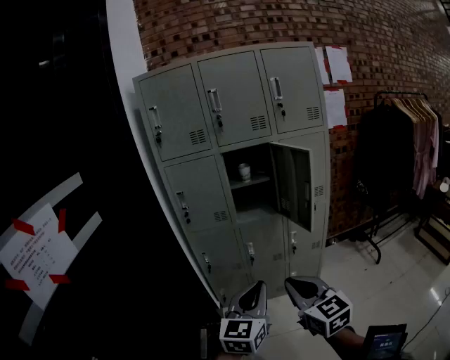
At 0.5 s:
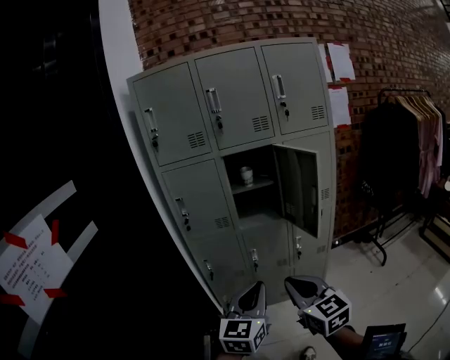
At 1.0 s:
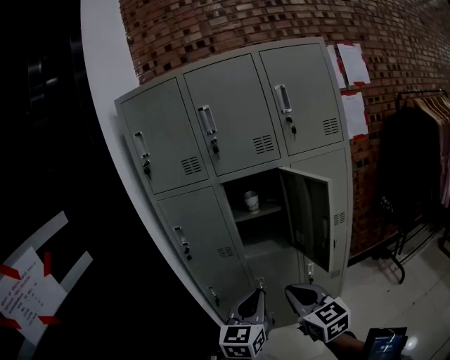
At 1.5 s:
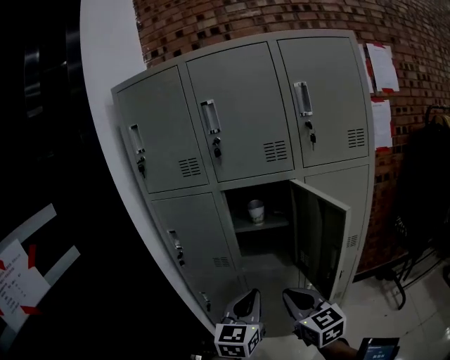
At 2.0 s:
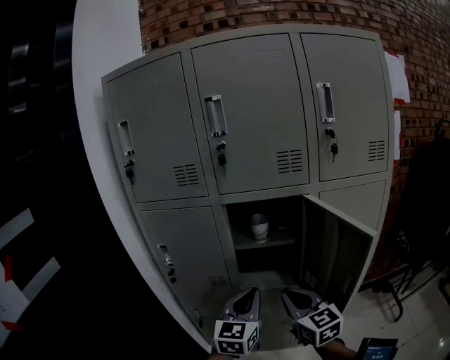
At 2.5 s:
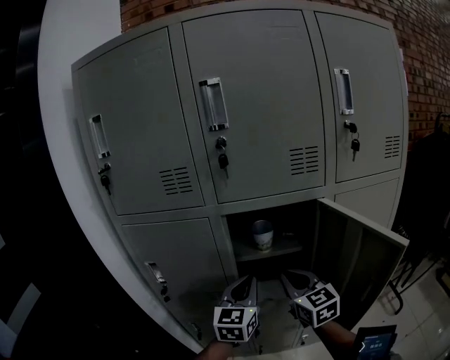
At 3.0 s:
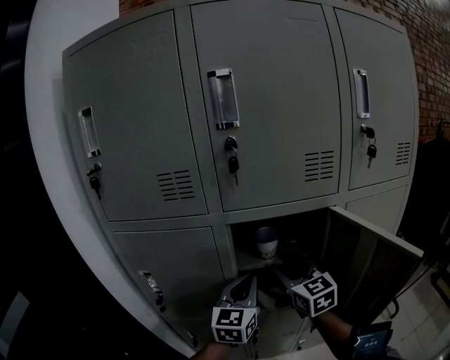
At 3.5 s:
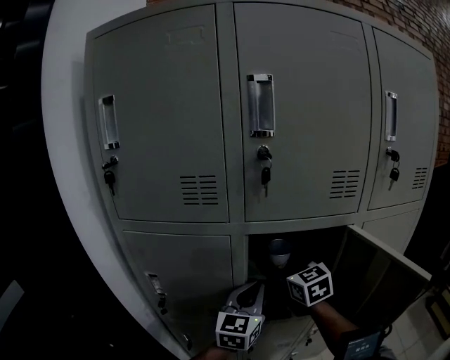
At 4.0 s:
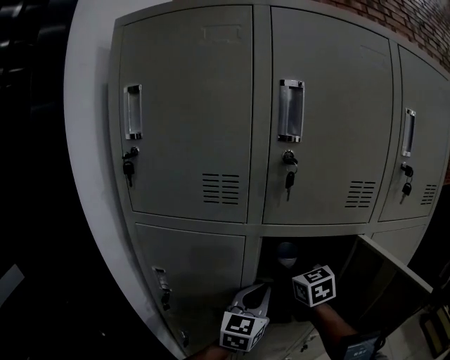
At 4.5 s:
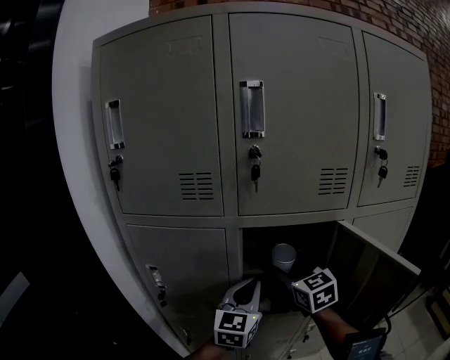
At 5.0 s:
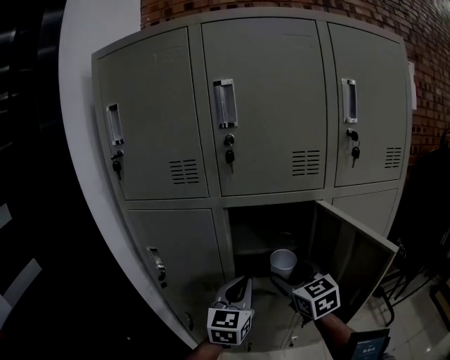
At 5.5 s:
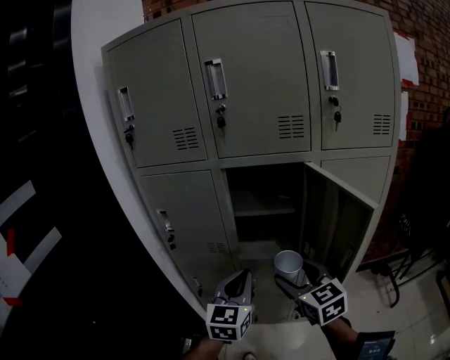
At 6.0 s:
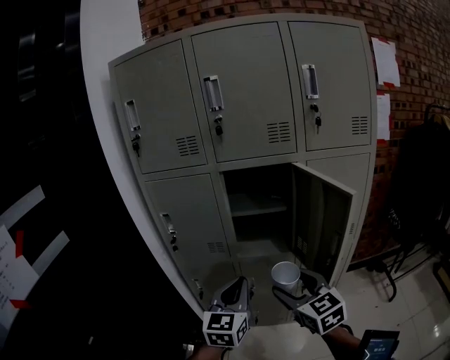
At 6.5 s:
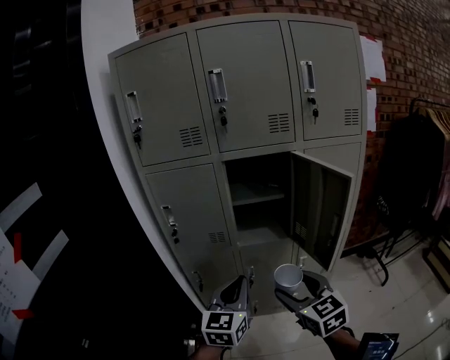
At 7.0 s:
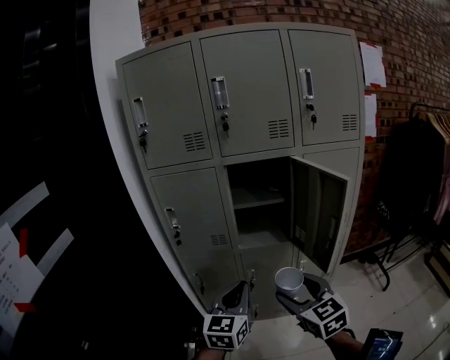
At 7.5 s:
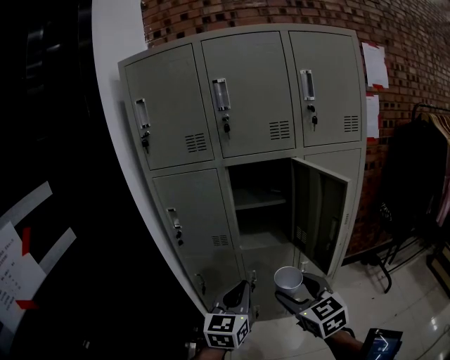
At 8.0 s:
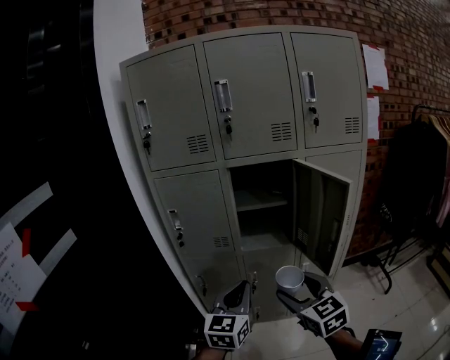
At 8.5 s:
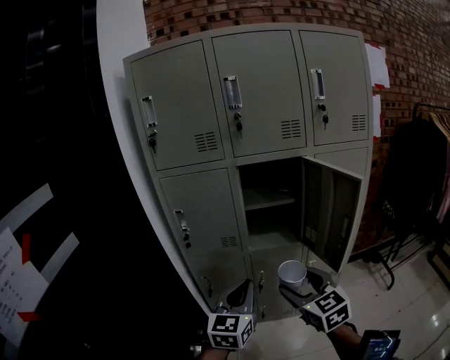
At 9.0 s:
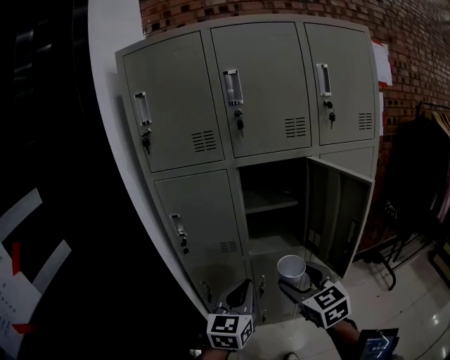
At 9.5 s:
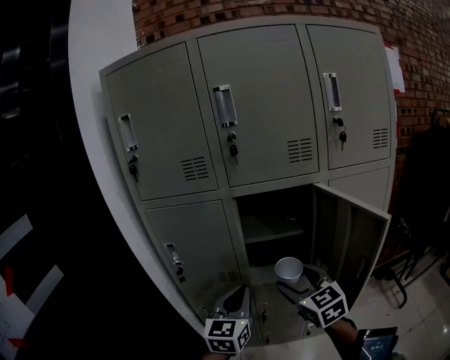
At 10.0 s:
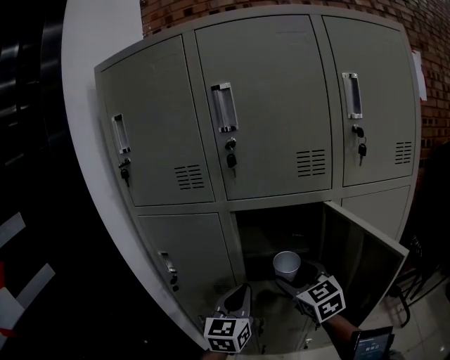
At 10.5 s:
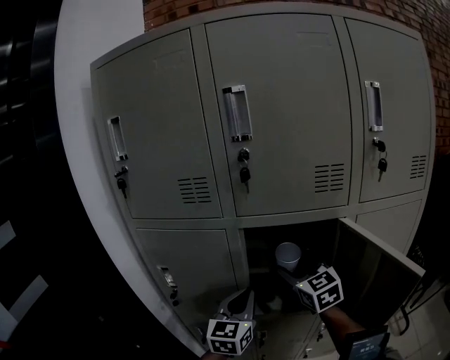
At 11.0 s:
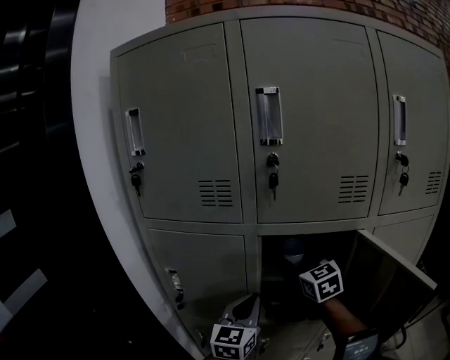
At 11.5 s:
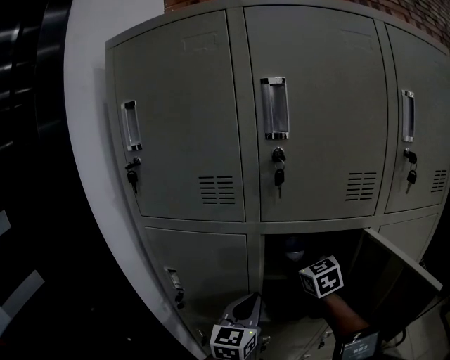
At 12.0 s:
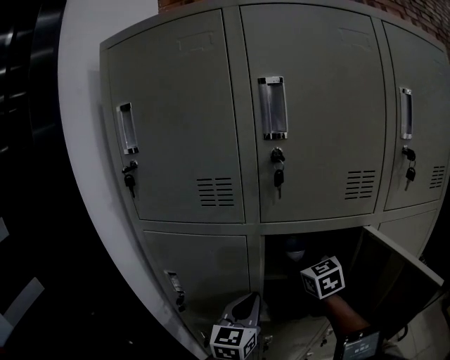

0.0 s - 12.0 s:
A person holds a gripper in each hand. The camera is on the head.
0.0 s - 2.0 s: Both grippers are carried forward, some 40 cm.
2.0 s - 4.0 s: The right gripper travels forward by approximately 30 cm, and opens. Meanwhile the left gripper shifts some 20 cm forward.
4.0 s - 6.0 s: Both grippers travel together backward, some 35 cm.
6.0 s - 8.0 s: The two grippers go approximately 5 cm backward.
8.0 s - 10.0 s: Both grippers move forward, some 25 cm.
10.0 s - 12.0 s: The left gripper travels forward by some 10 cm. Meanwhile the right gripper goes some 15 cm forward.

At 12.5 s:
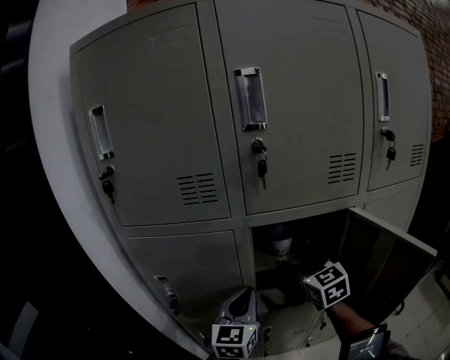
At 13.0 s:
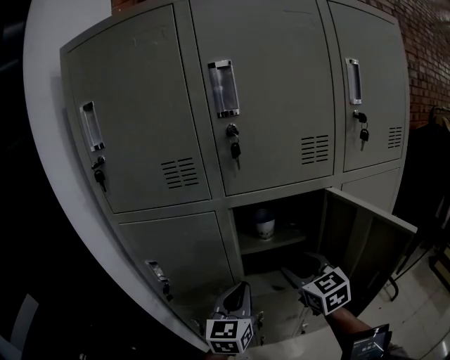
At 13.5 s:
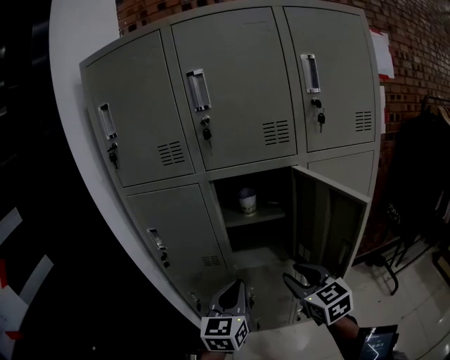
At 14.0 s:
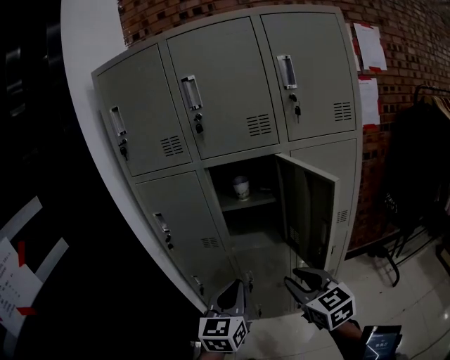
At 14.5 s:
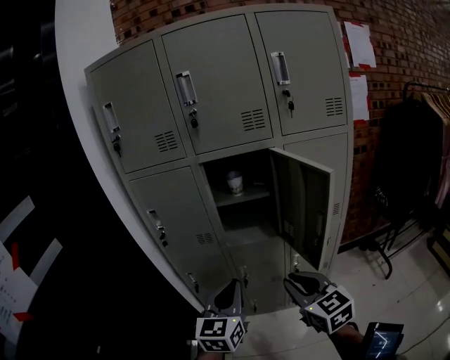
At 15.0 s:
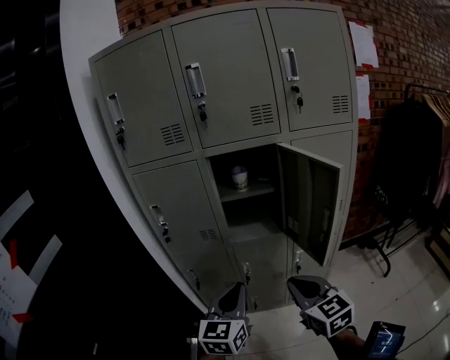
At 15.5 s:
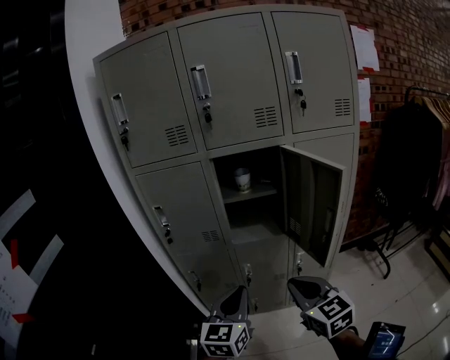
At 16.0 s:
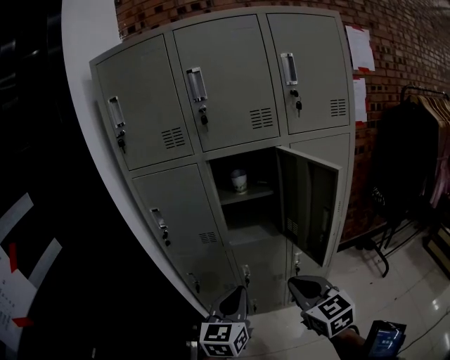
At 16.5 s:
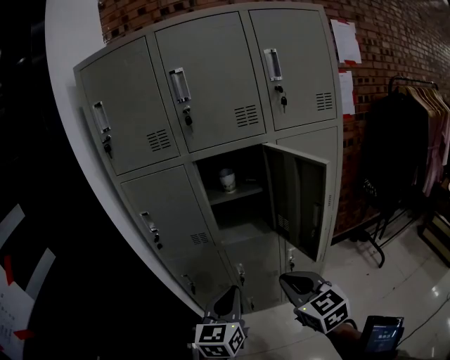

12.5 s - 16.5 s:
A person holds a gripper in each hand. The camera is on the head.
12.5 s - 14.5 s: Both grippers travel together backward, about 35 cm. The right gripper closes its fingers.
14.5 s - 16.5 s: The grippers make only small movements.

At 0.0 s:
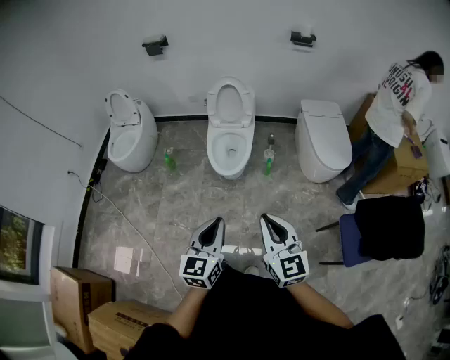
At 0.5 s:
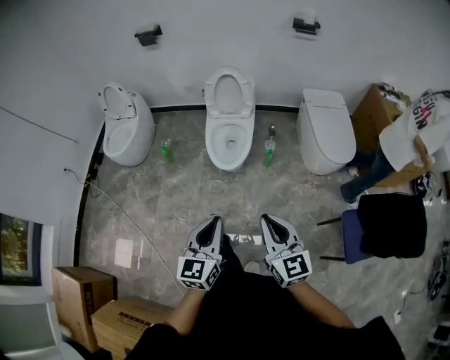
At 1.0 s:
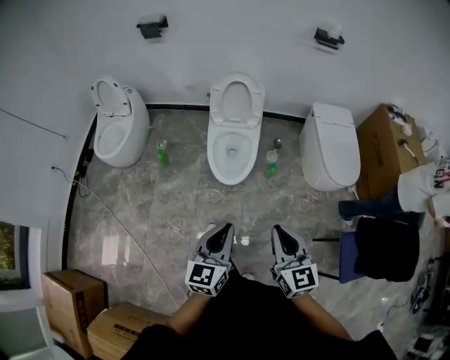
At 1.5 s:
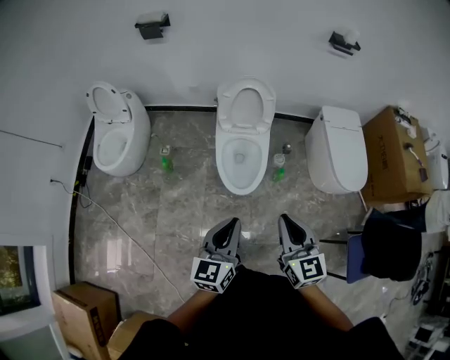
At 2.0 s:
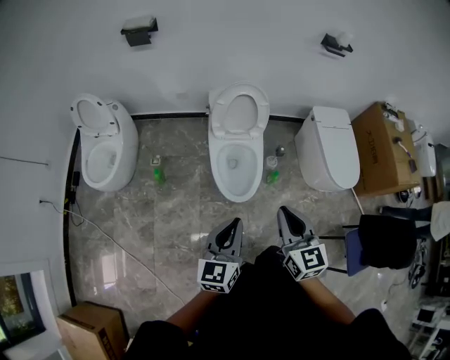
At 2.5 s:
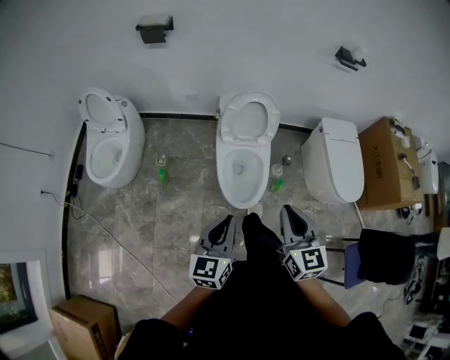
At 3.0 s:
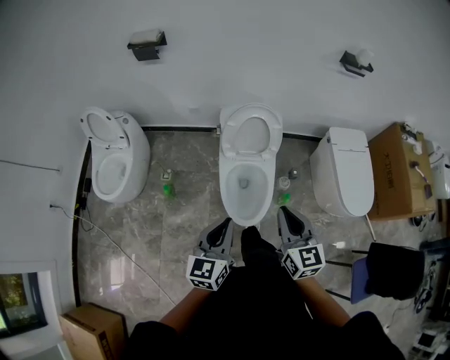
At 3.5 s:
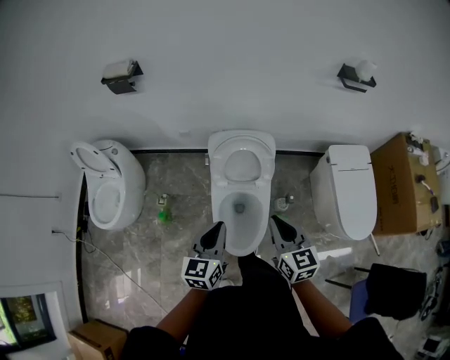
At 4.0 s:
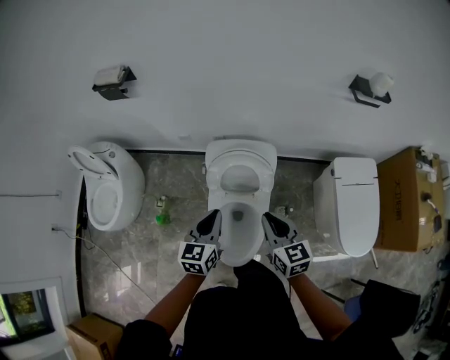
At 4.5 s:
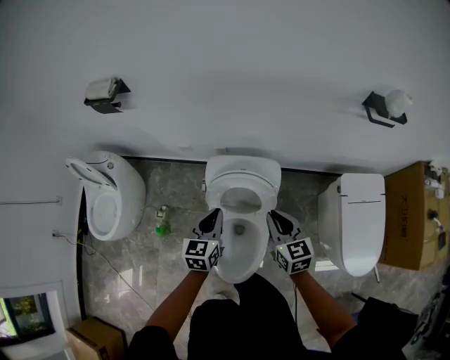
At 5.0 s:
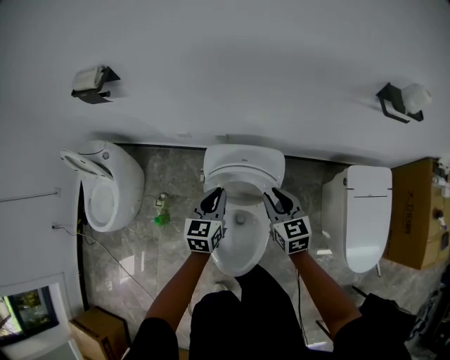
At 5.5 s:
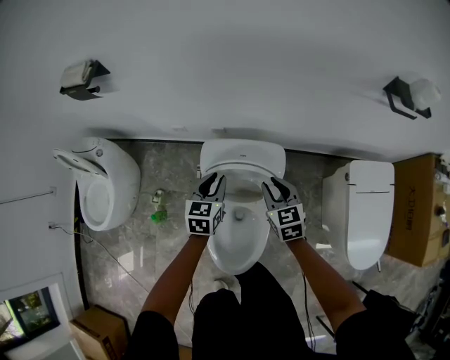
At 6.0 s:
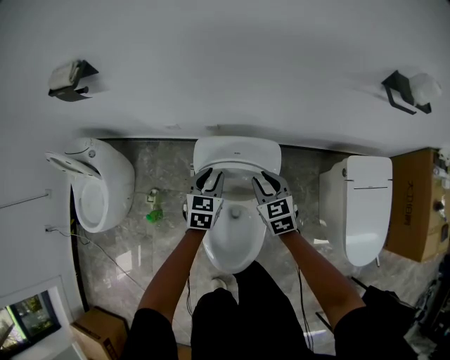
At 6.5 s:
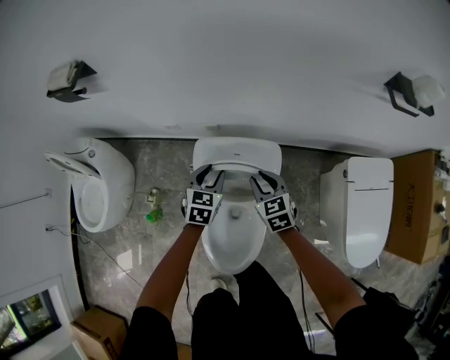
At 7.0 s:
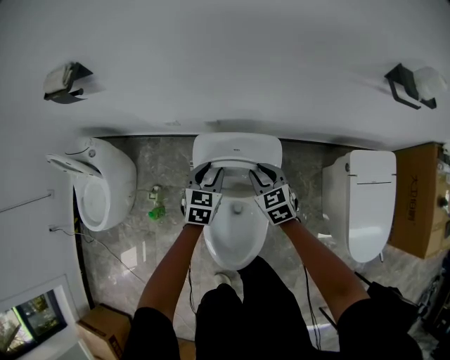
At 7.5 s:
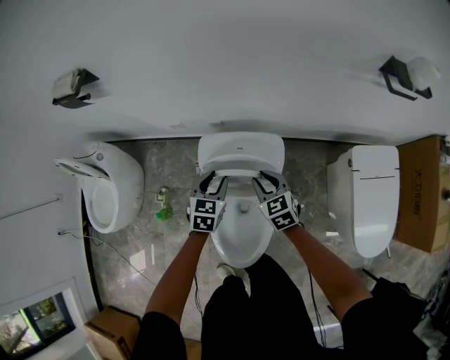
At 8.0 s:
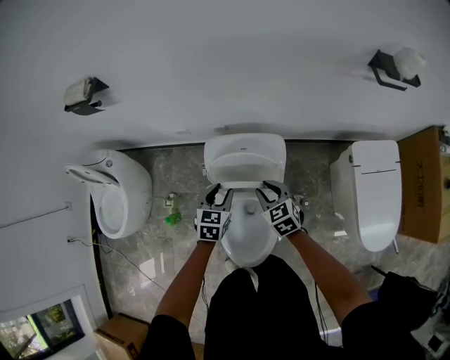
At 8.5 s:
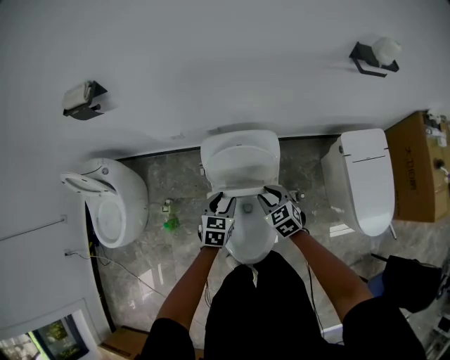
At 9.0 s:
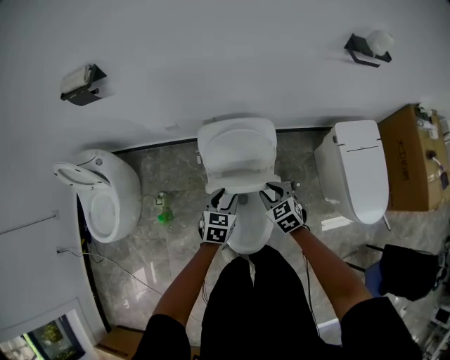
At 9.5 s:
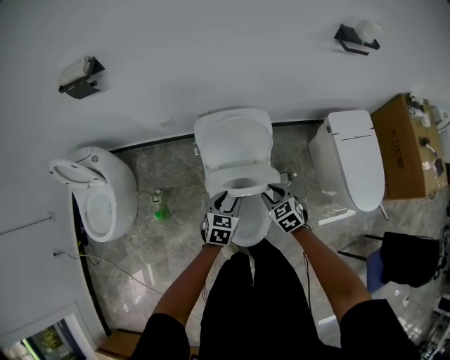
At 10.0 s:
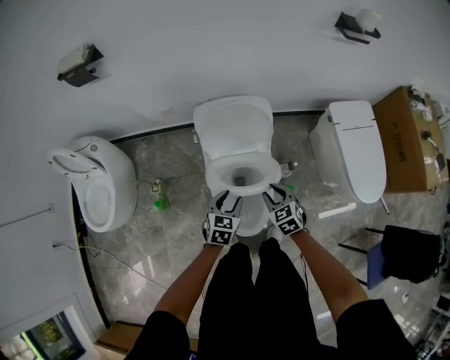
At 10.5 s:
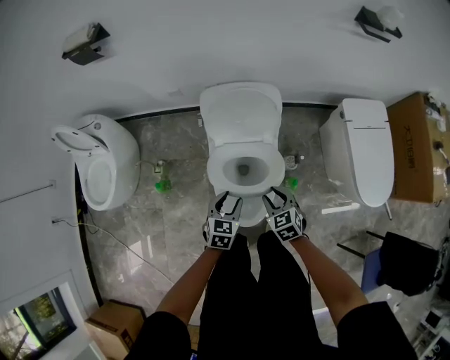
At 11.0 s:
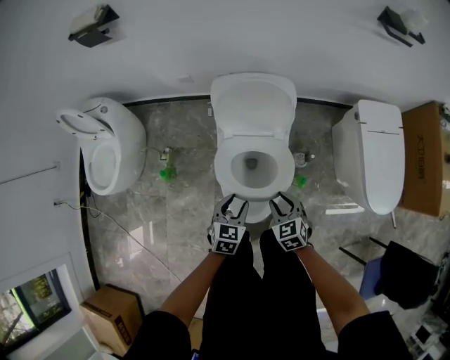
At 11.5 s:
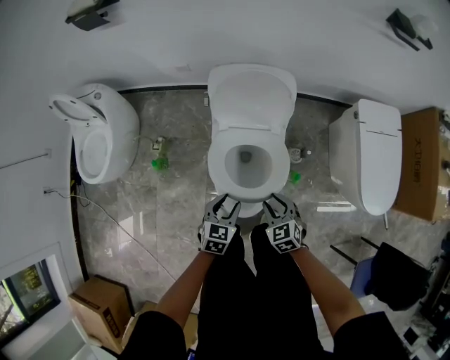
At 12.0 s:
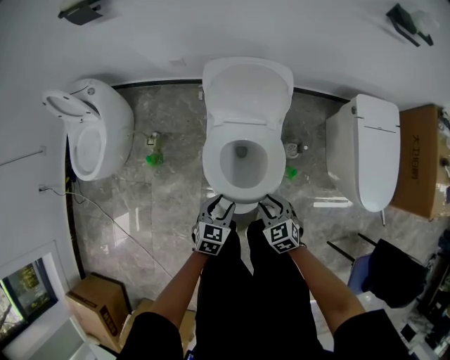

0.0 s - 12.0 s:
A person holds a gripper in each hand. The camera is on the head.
0.0 s - 2.0 s: The pair of grippers is taken forward and to the left, about 40 cm.
2.0 s - 4.0 s: The pair of grippers is taken forward, some 40 cm.
4.0 s - 6.0 s: The two grippers go some 30 cm forward and downward. The left gripper rotates roughly 20 degrees, and opens its fingers.
6.0 s - 8.0 s: Both grippers move backward, some 5 cm.
8.0 s - 10.0 s: The grippers both shift backward by about 25 cm.
10.0 s - 12.0 s: Both grippers move backward and downward, approximately 10 cm.
